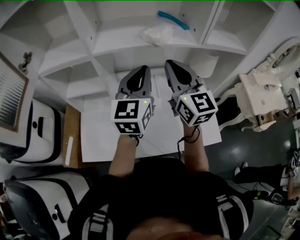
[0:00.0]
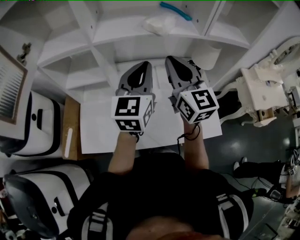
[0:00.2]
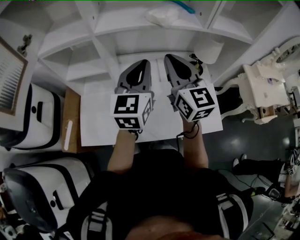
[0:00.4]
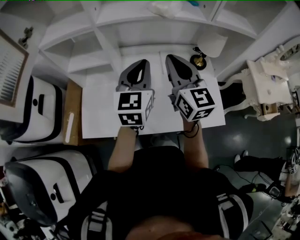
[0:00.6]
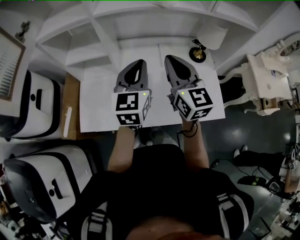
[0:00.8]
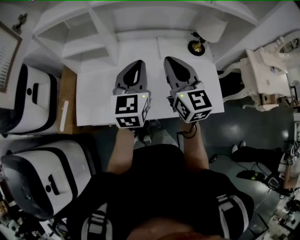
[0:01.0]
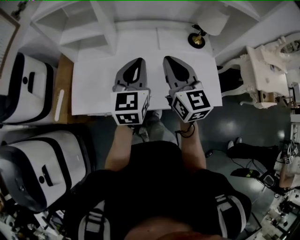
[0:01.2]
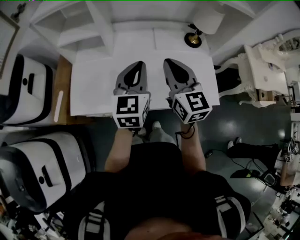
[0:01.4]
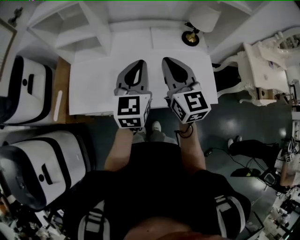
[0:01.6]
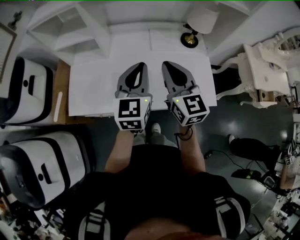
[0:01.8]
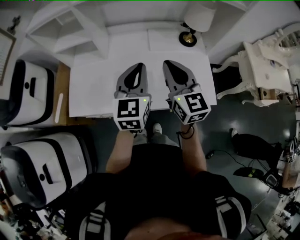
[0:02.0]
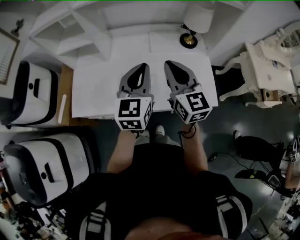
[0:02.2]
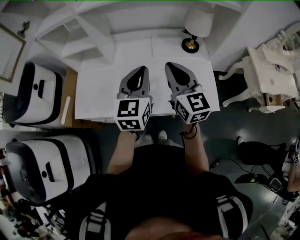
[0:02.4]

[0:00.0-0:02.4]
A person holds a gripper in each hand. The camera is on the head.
0:00.0 to 0:01.2: Both grippers move downward and backward, roughly 20 cm.
0:01.2 to 0:02.4: Both grippers move to the right, about 10 cm.

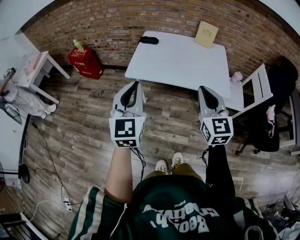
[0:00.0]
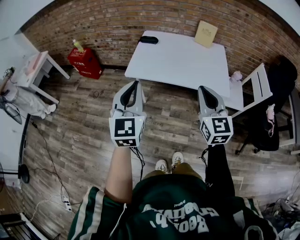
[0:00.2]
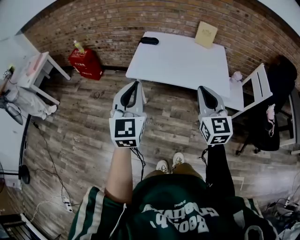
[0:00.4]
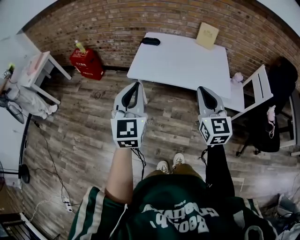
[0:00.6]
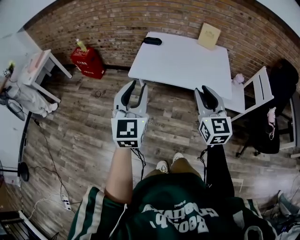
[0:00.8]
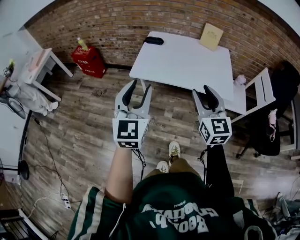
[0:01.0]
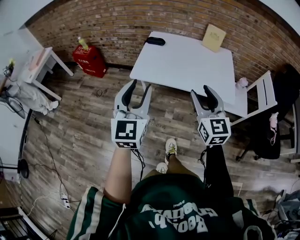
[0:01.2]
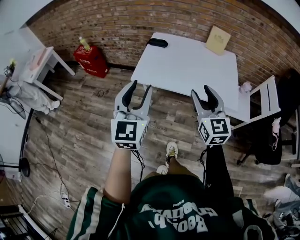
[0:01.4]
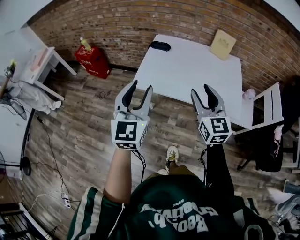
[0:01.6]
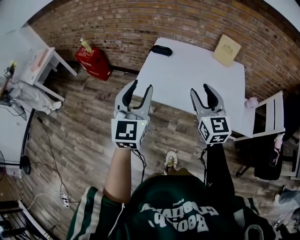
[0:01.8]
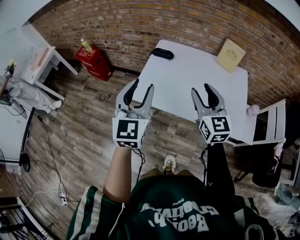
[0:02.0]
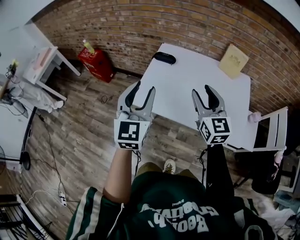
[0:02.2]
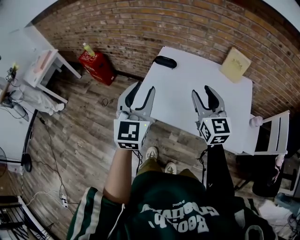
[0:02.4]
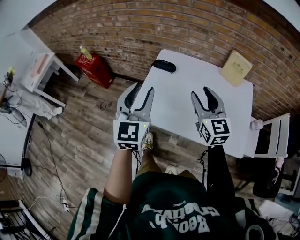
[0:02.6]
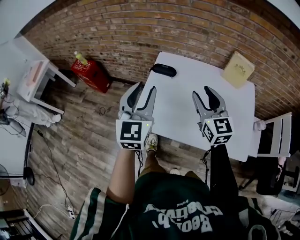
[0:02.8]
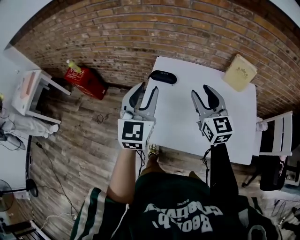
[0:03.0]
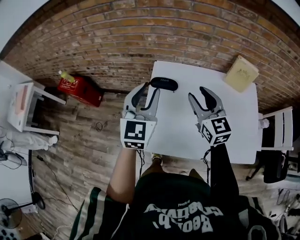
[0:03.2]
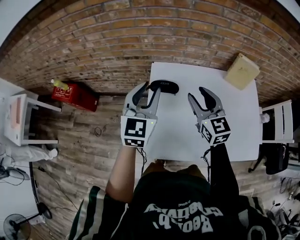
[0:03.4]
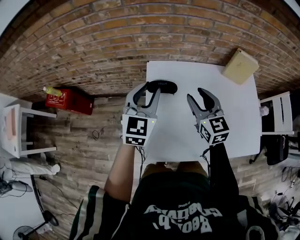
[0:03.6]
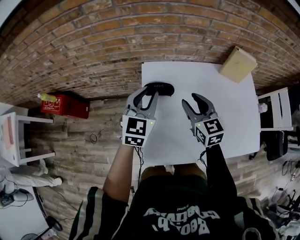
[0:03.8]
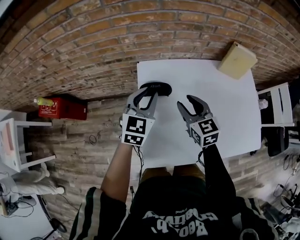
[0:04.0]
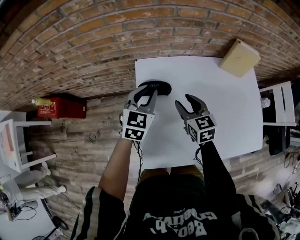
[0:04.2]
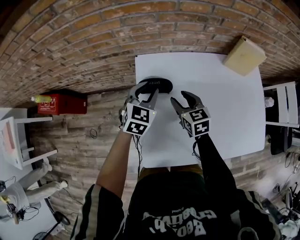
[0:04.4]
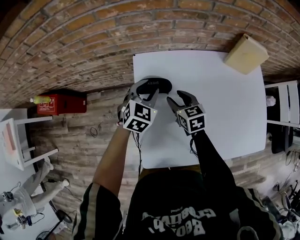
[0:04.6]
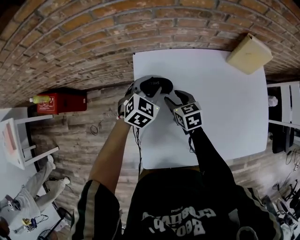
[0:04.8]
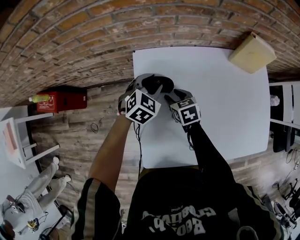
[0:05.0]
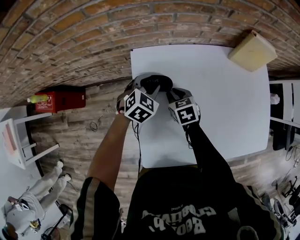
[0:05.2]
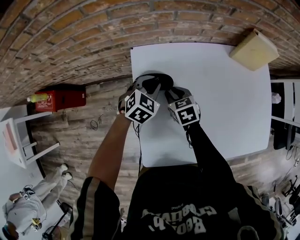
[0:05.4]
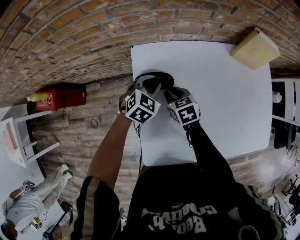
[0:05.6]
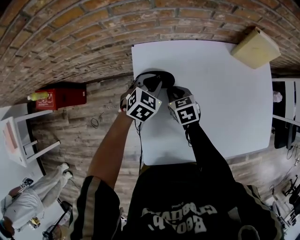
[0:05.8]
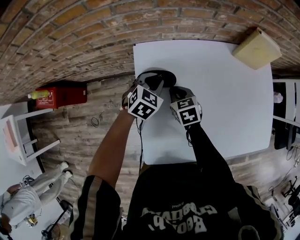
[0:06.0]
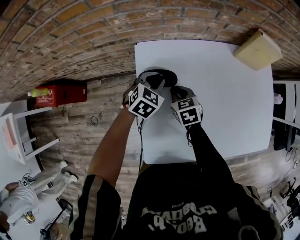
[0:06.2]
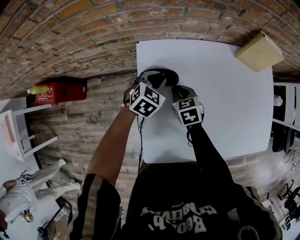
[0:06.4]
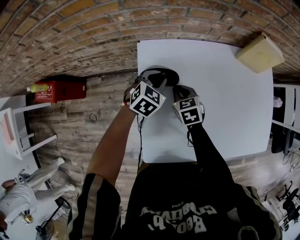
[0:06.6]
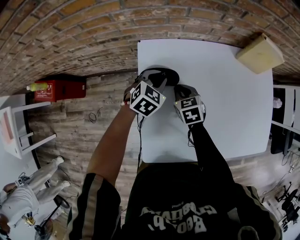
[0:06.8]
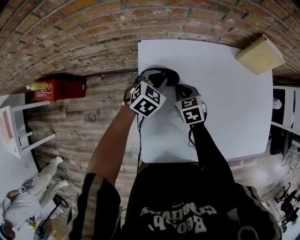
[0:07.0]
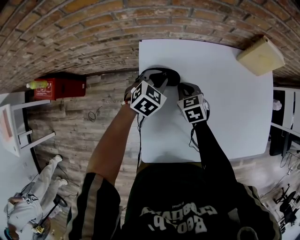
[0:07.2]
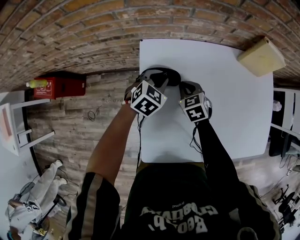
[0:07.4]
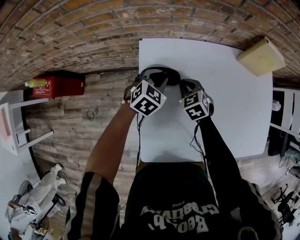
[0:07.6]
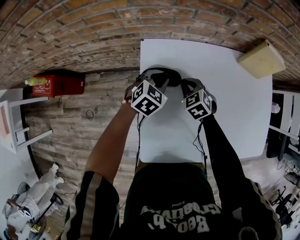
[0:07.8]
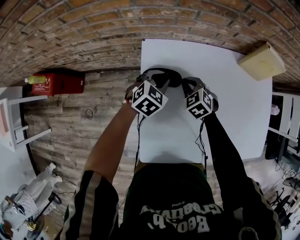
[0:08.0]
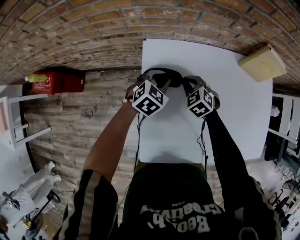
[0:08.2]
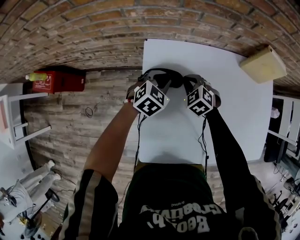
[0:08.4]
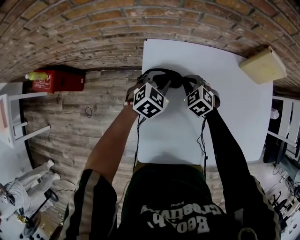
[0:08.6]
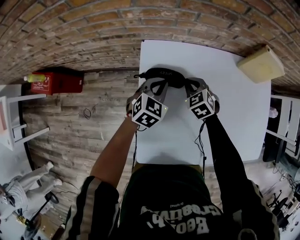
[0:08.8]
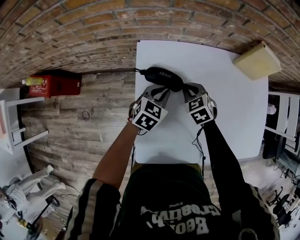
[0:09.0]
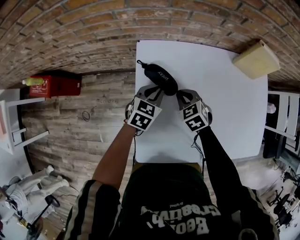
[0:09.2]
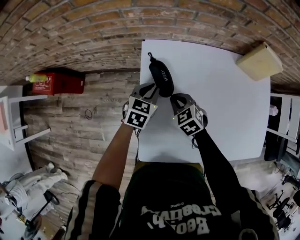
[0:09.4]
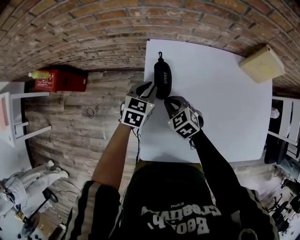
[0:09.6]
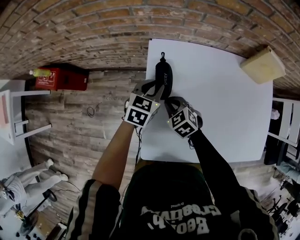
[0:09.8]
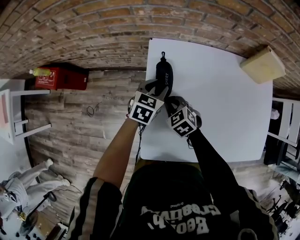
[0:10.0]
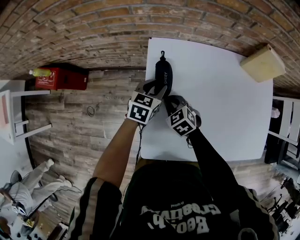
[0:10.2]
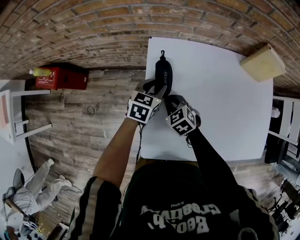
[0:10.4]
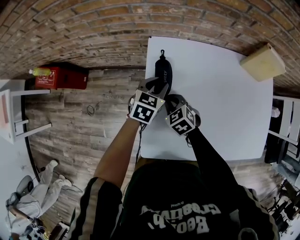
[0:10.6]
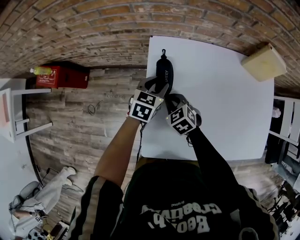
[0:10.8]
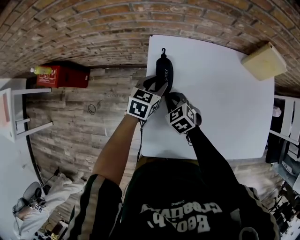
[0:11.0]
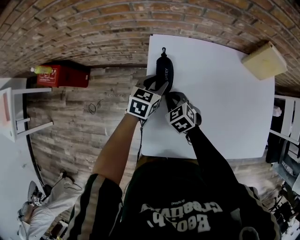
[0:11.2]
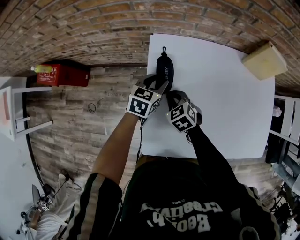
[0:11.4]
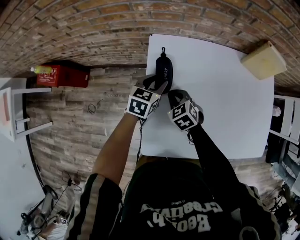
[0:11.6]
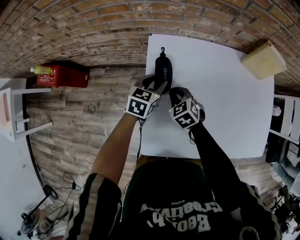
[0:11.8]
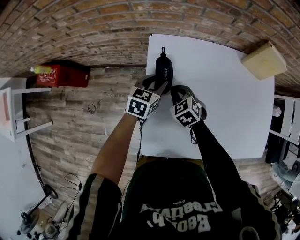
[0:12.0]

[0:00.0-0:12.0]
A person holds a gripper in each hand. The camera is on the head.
0:00.0 to 0:01.6: The two grippers go about 15 cm forward. The left gripper opens. The right gripper opens up.
0:01.6 to 0:03.0: The two grippers go roughly 35 cm forward.
0:03.0 to 0:04.4: The grippers both shift downward and forward by some 30 cm. The left gripper rotates approximately 40 degrees; the right gripper rotates roughly 30 degrees.
0:04.4 to 0:06.0: The grippers both shift downward by roughly 10 cm. The right gripper closes up.
0:06.0 to 0:07.6: The right gripper rotates about 20 degrees.
0:07.6 to 0:09.0: The left gripper changes place by roughly 5 cm.
0:09.0 to 0:10.4: The right gripper is displaced to the left and backward by some 15 cm. Meanwhile the left gripper heads to the left, covering some 5 cm, and opens its fingers.
0:10.4 to 0:12.0: The grippers stay close to where they were, moving slightly.

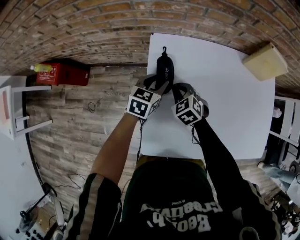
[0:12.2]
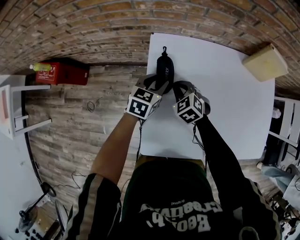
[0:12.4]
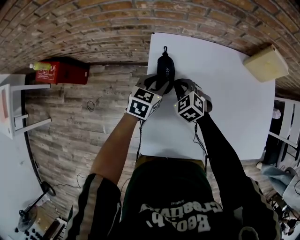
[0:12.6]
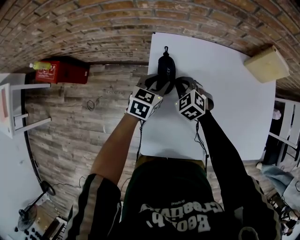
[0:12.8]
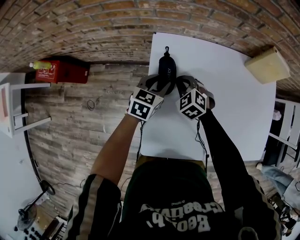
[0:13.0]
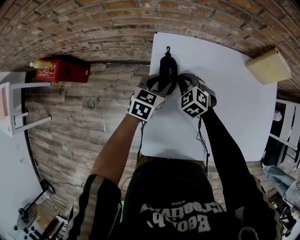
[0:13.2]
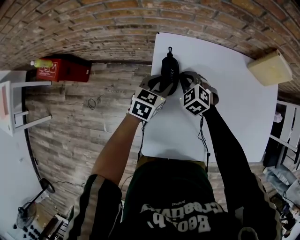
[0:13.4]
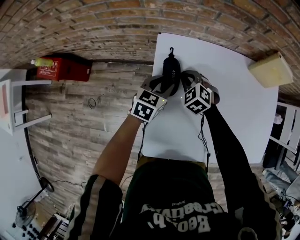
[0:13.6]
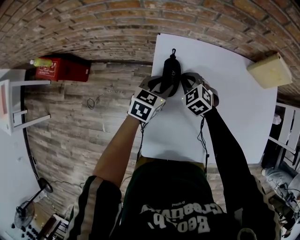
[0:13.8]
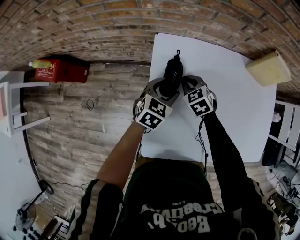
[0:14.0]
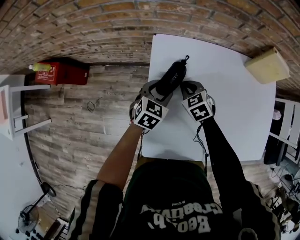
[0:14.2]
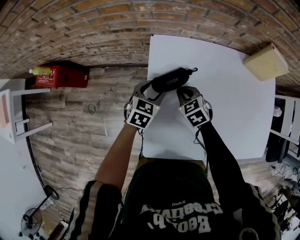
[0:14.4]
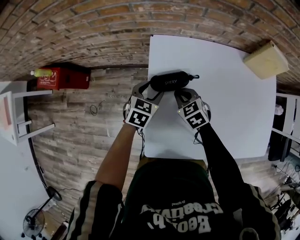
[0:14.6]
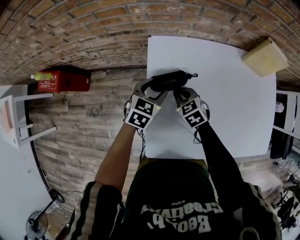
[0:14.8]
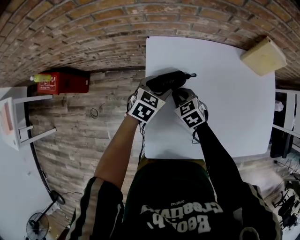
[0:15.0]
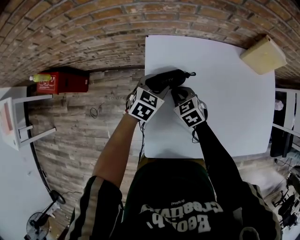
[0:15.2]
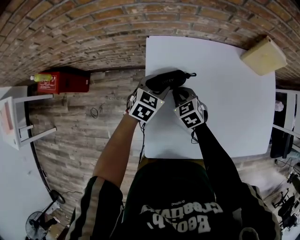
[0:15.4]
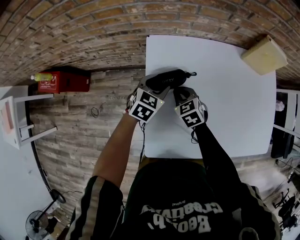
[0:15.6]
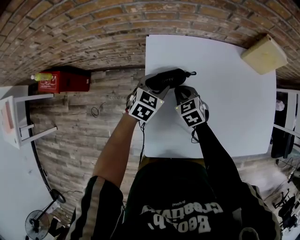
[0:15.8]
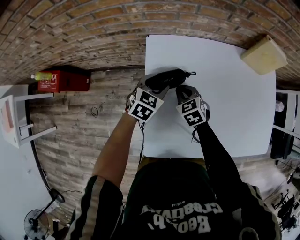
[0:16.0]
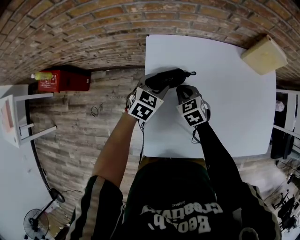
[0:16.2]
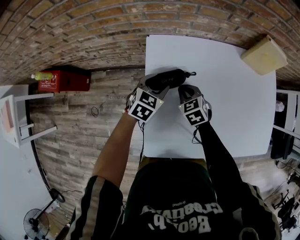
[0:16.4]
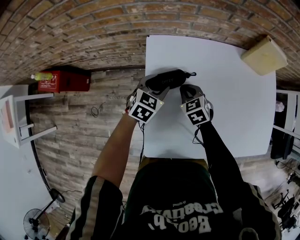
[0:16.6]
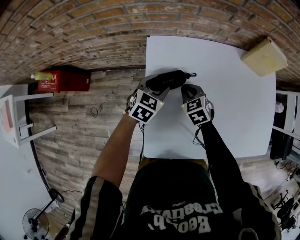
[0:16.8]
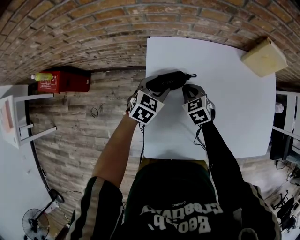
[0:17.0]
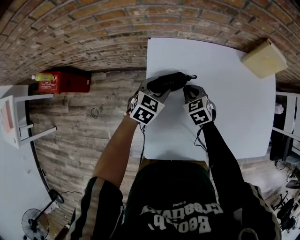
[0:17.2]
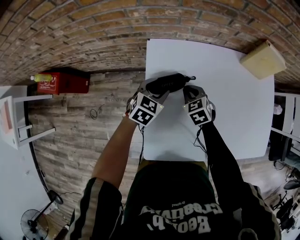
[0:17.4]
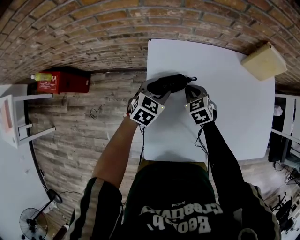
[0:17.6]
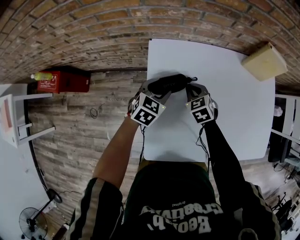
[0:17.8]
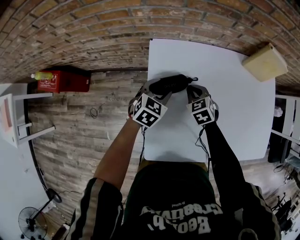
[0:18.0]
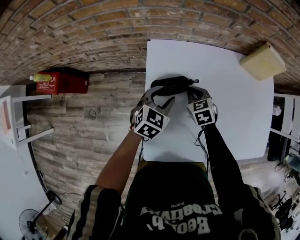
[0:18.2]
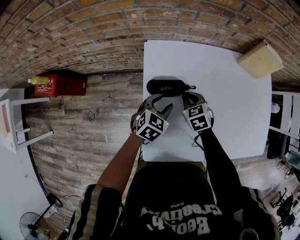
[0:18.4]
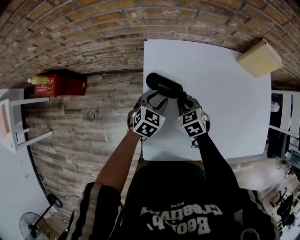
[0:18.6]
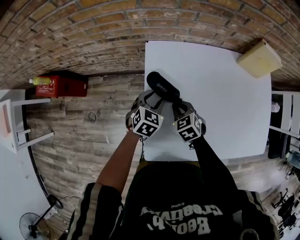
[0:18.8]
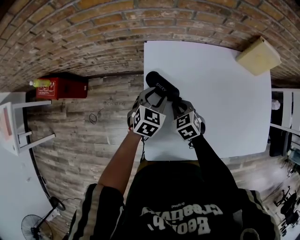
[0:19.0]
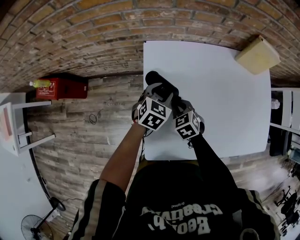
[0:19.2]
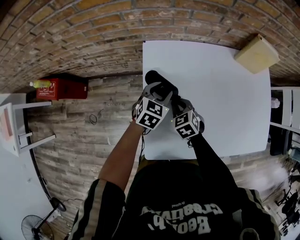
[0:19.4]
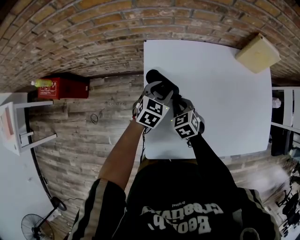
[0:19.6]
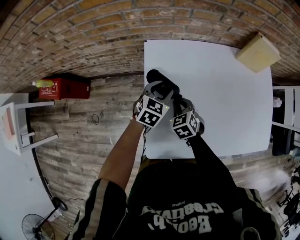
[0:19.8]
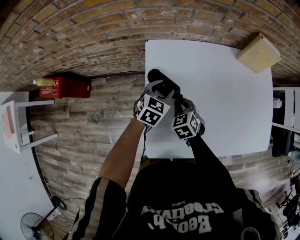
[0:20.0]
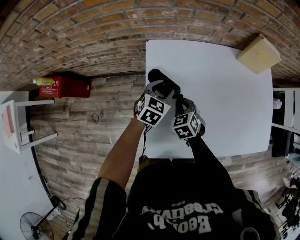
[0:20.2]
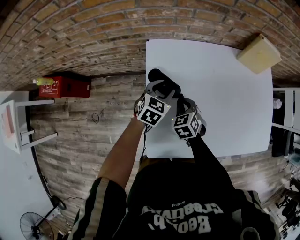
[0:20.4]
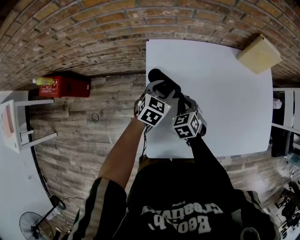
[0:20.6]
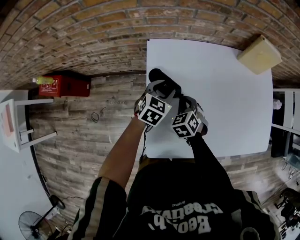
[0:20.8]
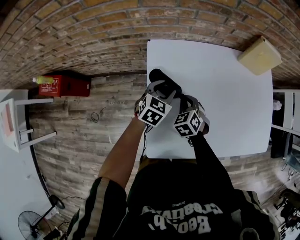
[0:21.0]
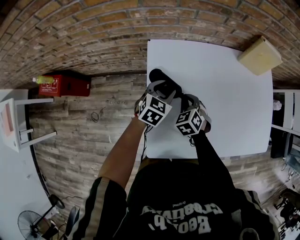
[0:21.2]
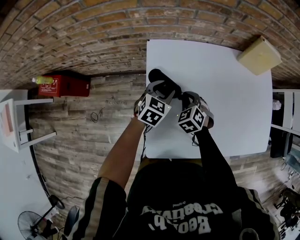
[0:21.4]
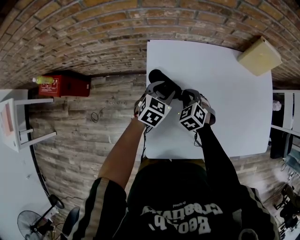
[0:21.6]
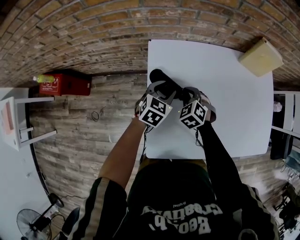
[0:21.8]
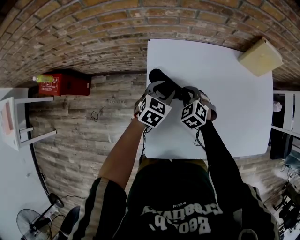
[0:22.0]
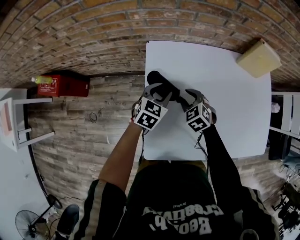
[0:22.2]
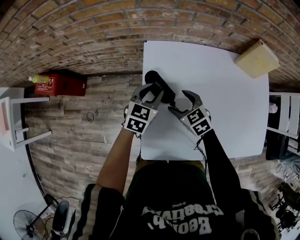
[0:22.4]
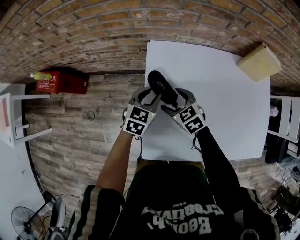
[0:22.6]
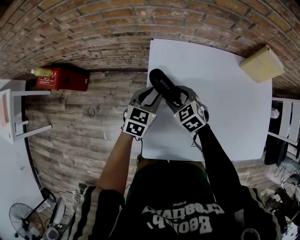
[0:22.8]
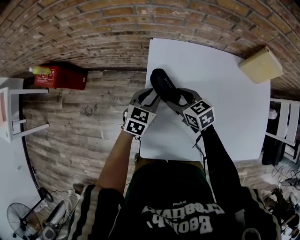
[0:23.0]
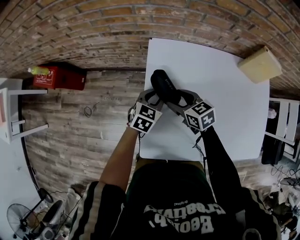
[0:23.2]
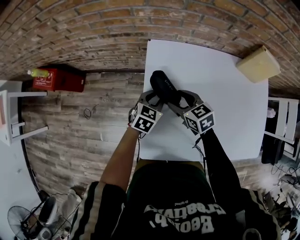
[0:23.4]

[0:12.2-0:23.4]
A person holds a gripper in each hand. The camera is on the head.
0:12.2 to 0:13.8: The right gripper shifts about 5 cm forward.
0:13.8 to 0:15.4: The right gripper shifts some 5 cm backward, and swivels some 20 degrees.
0:15.4 to 0:17.0: There are only small adjustments of the grippers.
0:18.6 to 0:20.2: The grippers move only a little.
0:20.2 to 0:21.8: The right gripper travels forward by about 5 cm.
0:21.8 to 0:23.4: The right gripper ends up about 5 cm from where it was, swivels about 40 degrees, and opens up.
